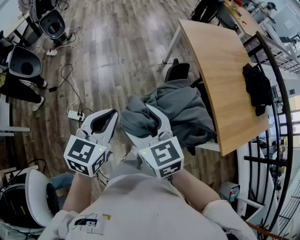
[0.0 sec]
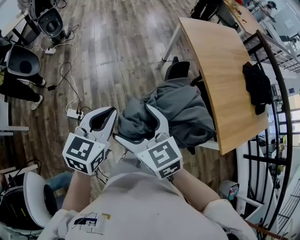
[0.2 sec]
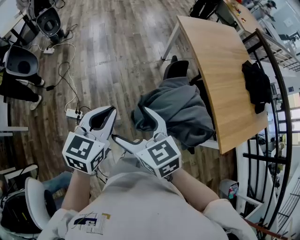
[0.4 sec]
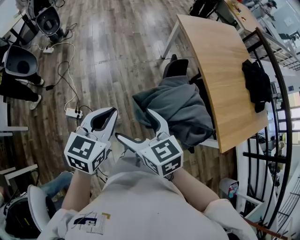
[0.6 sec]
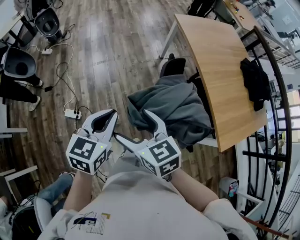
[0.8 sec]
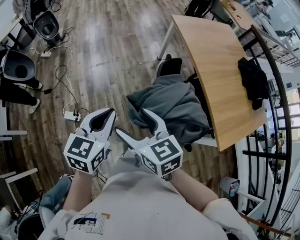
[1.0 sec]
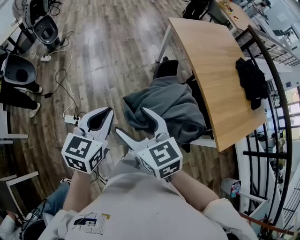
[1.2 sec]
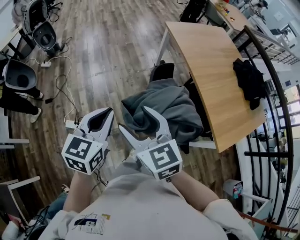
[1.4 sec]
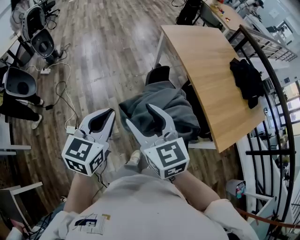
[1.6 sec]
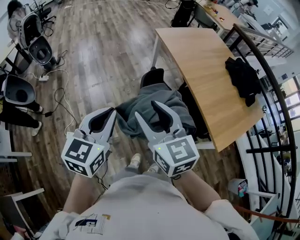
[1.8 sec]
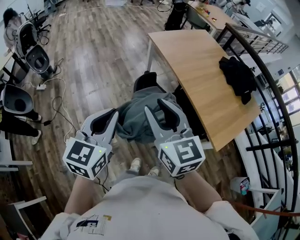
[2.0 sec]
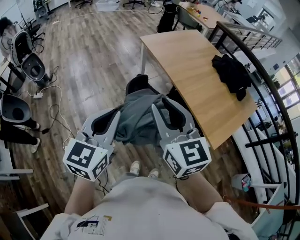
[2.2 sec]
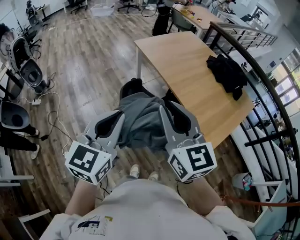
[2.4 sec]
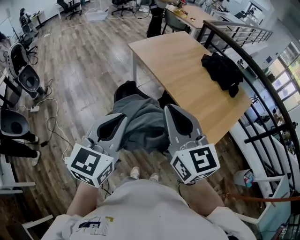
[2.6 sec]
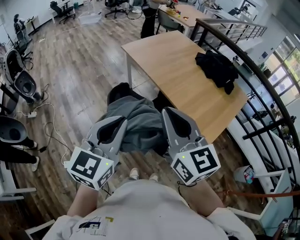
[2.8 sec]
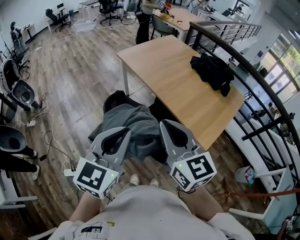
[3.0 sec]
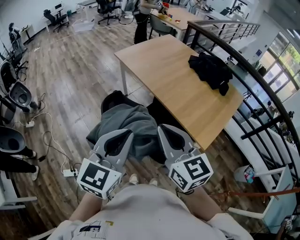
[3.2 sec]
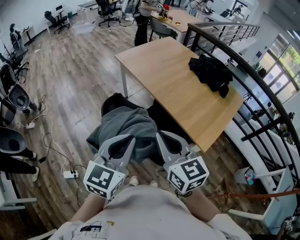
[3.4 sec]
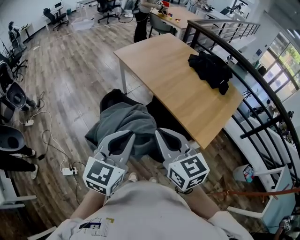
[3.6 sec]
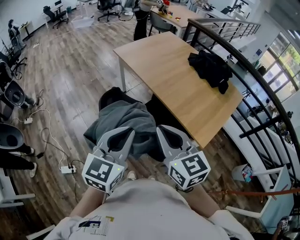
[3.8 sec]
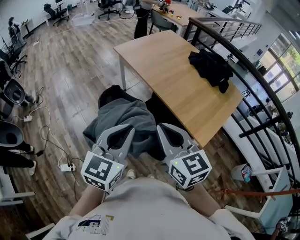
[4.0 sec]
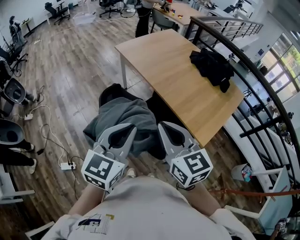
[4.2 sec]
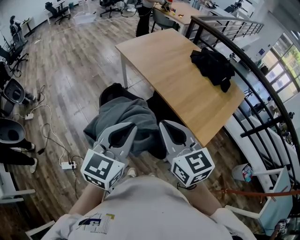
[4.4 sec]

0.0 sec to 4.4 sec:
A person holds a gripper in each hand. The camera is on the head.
0.0 sec to 1.4 sec: The right gripper opens, then closes again.
1.4 sec to 3.0 sec: The left gripper ends up some 25 cm from where it was, and swivels some 30 degrees. The right gripper moves about 30 cm, rotates roughly 30 degrees, and closes up.
3.0 sec to 4.4 sec: The right gripper changes place by some 5 cm. The left gripper ends up roughly 5 cm from where it was.

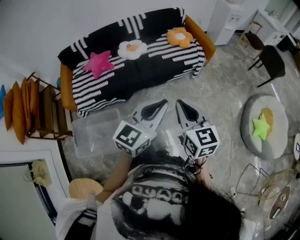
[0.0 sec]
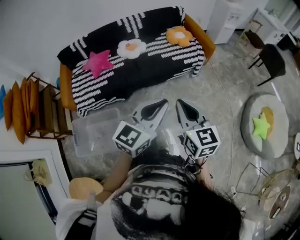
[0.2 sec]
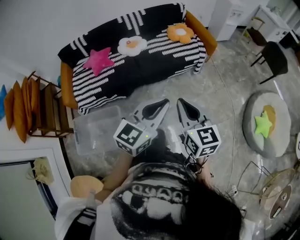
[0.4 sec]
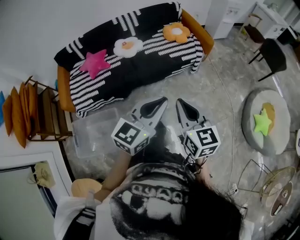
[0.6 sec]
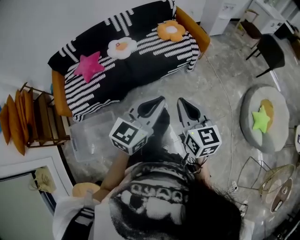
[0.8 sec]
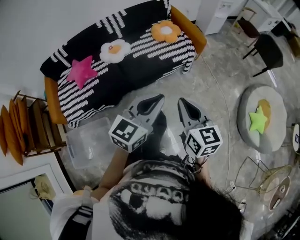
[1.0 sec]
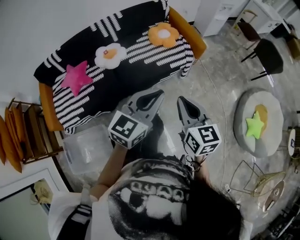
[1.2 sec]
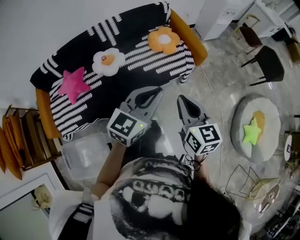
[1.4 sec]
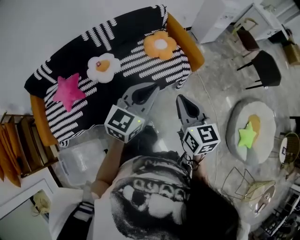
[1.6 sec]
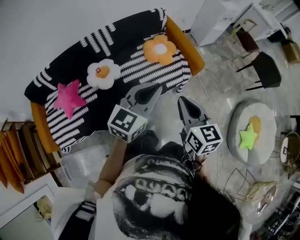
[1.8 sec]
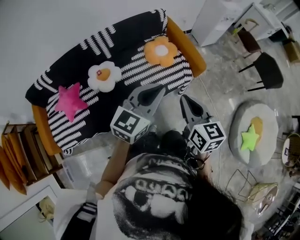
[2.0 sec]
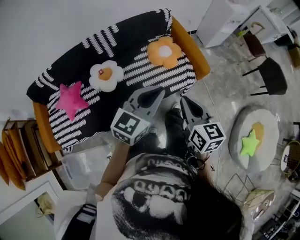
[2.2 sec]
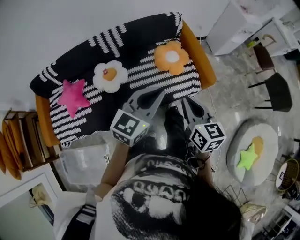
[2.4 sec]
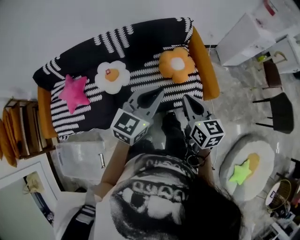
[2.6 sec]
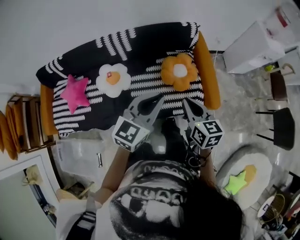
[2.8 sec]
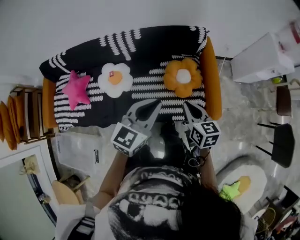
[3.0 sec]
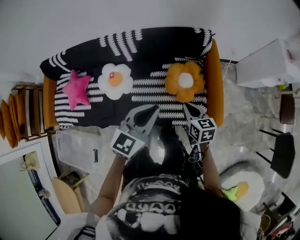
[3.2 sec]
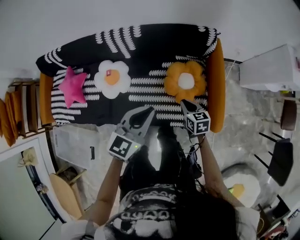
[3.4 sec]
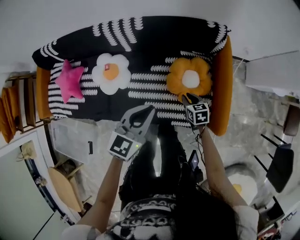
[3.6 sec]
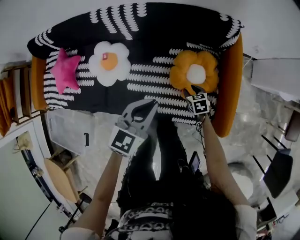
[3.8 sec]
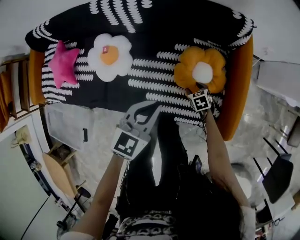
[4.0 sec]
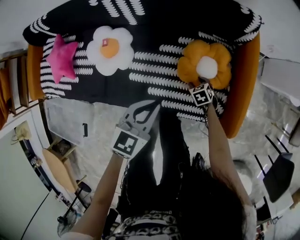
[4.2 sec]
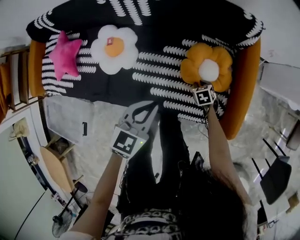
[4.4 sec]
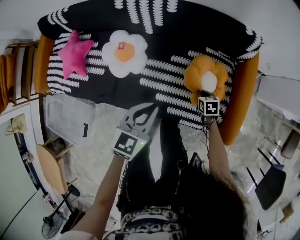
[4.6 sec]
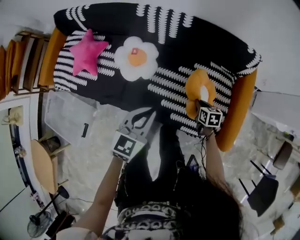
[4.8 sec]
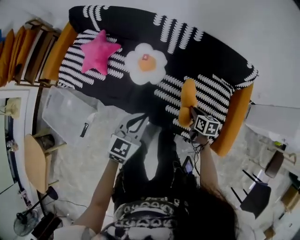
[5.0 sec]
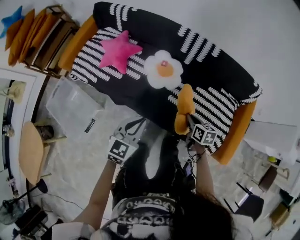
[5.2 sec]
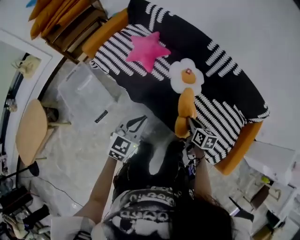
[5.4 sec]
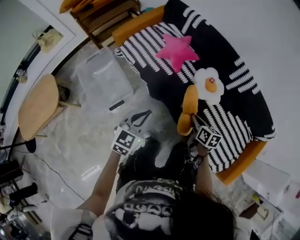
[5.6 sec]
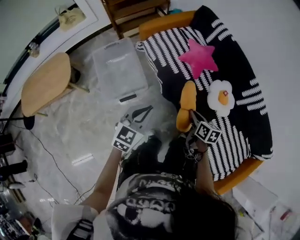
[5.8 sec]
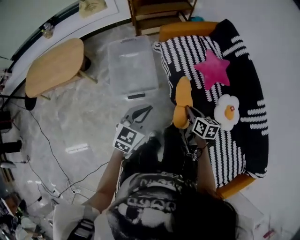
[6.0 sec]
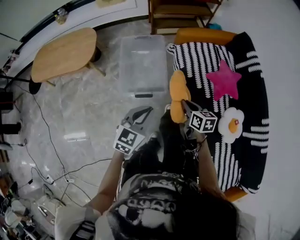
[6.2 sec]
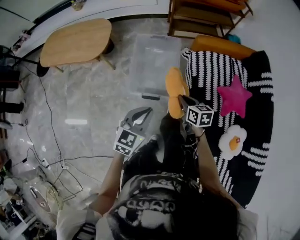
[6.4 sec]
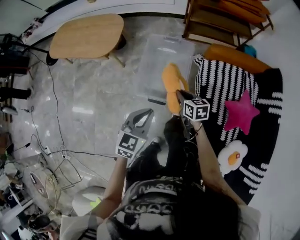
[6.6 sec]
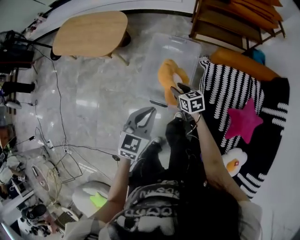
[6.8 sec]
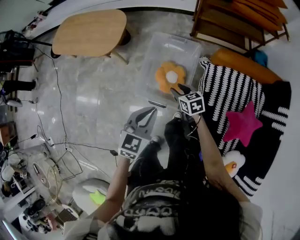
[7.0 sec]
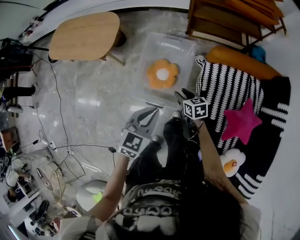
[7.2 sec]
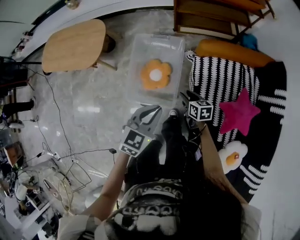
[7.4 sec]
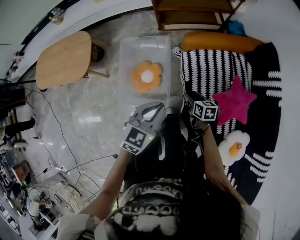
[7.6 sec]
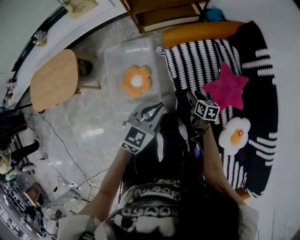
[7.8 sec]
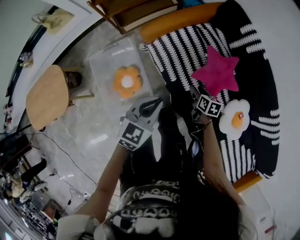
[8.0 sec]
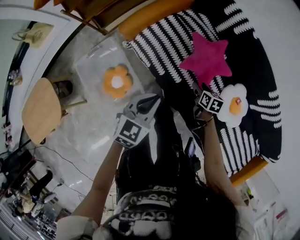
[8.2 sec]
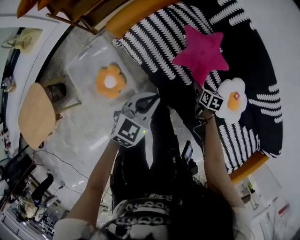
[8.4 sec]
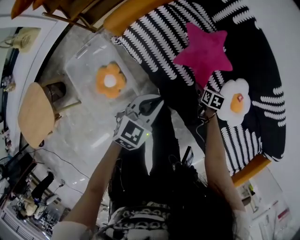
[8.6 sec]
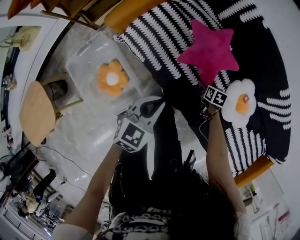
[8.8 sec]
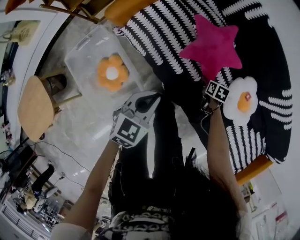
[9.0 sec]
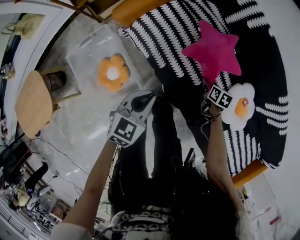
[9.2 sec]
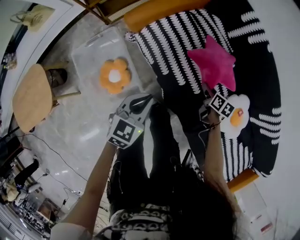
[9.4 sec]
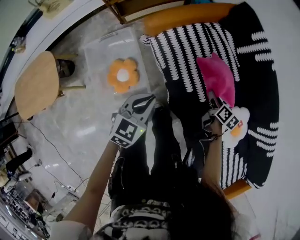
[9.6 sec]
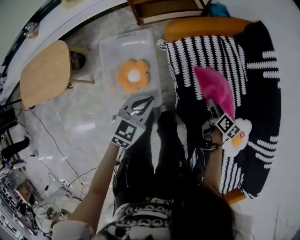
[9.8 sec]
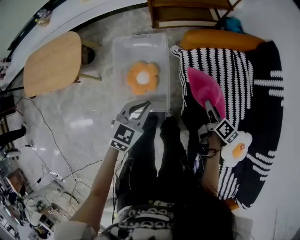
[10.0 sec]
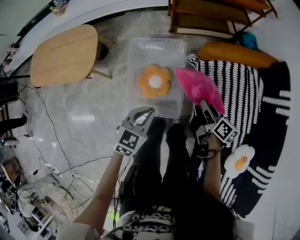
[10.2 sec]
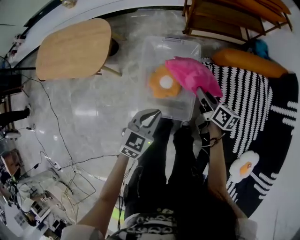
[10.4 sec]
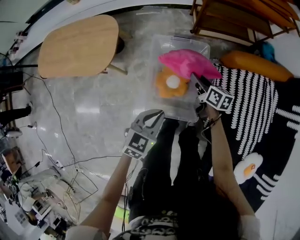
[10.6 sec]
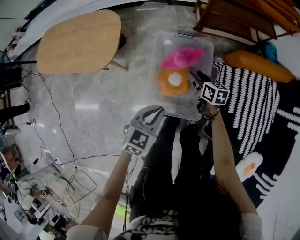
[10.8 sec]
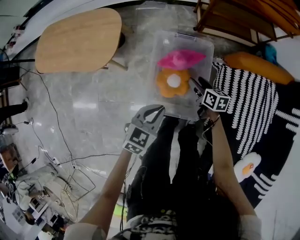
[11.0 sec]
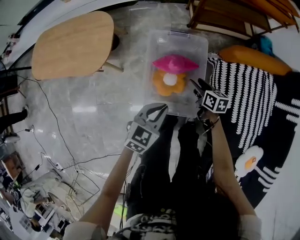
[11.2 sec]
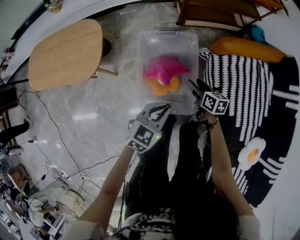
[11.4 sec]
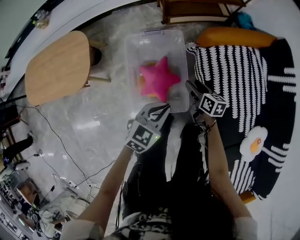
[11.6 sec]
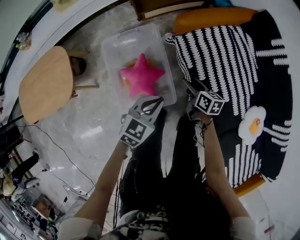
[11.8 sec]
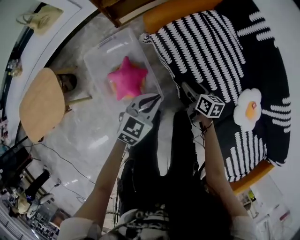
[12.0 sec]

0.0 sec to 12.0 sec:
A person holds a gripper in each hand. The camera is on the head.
0.0 sec to 1.6 sec: The two grippers travel together, forward, some 40 cm.
1.6 sec to 3.0 sec: The right gripper moves about 40 cm, and swivels approximately 30 degrees, while the left gripper changes place by roughly 30 cm, and rotates roughly 30 degrees.
3.0 sec to 4.4 sec: The left gripper travels downward by about 25 cm, and rotates approximately 20 degrees; the right gripper shifts some 50 cm downward, angles its fingers downward, by roughly 40 degrees, and opens, then closes once more.
4.4 sec to 6.0 sec: Both grippers are carried some 80 cm. The right gripper points its fingers some 40 degrees further upward; the left gripper changes its angle by about 60 degrees.
6.0 sec to 7.6 sec: The right gripper shifts by approximately 40 cm, swivels some 20 degrees, and opens up, while the left gripper changes place by approximately 30 cm.
7.6 sec to 9.0 sec: The right gripper changes place by approximately 40 cm, and turns by approximately 50 degrees, while the left gripper changes place by about 25 cm, and turns by some 40 degrees.
9.0 sec to 10.4 sec: The right gripper changes place by about 60 cm, and tilts its fingers approximately 40 degrees upward, while the left gripper changes place by some 40 cm, and turns by roughly 40 degrees.
10.4 sec to 12.0 sec: The right gripper changes place by some 30 cm, rotates some 30 degrees, and opens up. Meanwhile the left gripper shifts by approximately 25 cm, and rotates approximately 40 degrees.

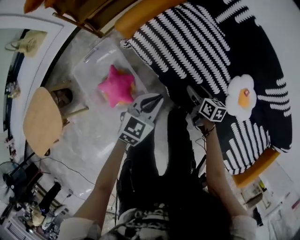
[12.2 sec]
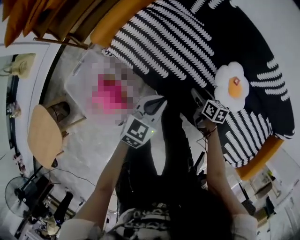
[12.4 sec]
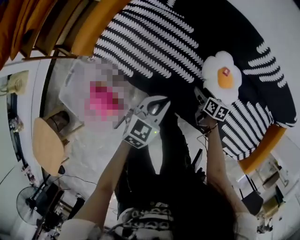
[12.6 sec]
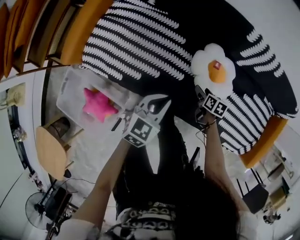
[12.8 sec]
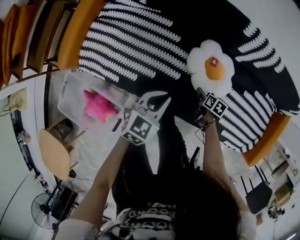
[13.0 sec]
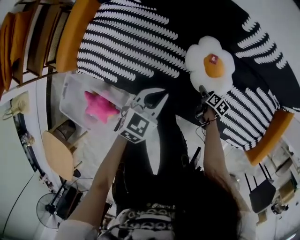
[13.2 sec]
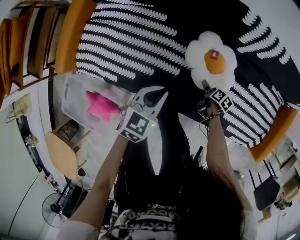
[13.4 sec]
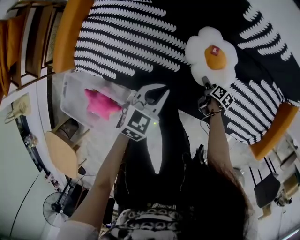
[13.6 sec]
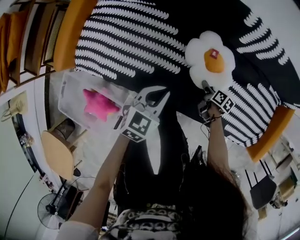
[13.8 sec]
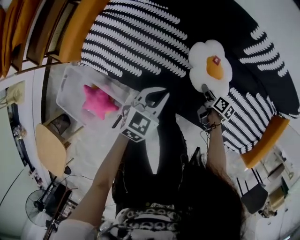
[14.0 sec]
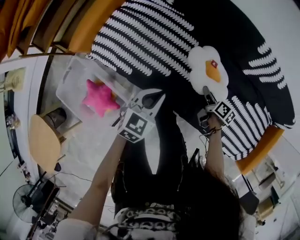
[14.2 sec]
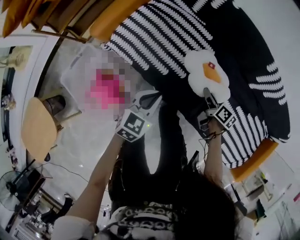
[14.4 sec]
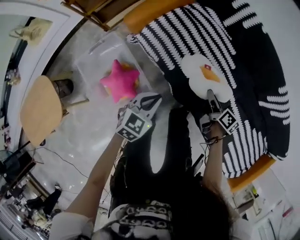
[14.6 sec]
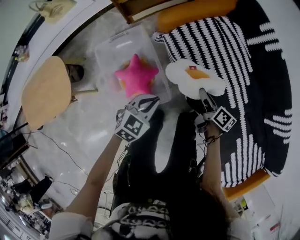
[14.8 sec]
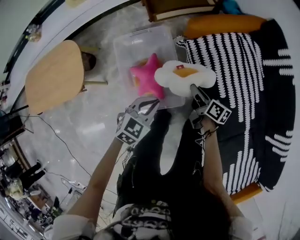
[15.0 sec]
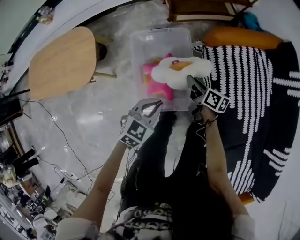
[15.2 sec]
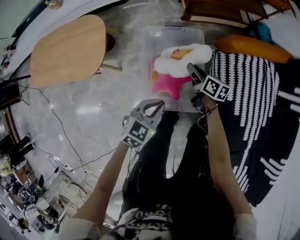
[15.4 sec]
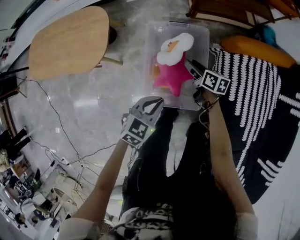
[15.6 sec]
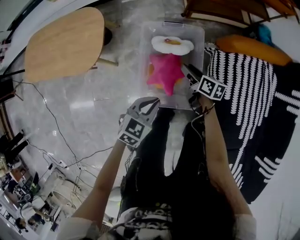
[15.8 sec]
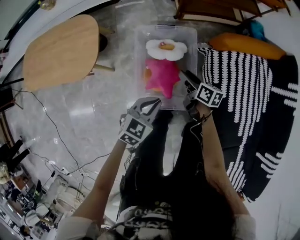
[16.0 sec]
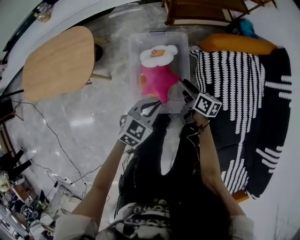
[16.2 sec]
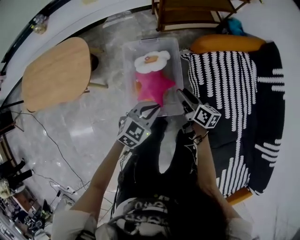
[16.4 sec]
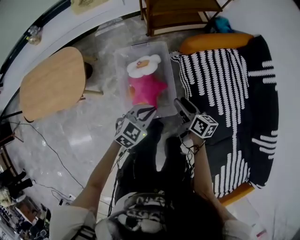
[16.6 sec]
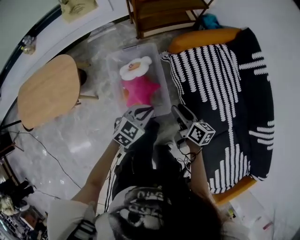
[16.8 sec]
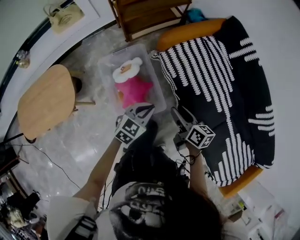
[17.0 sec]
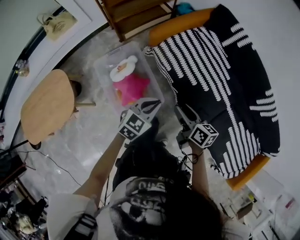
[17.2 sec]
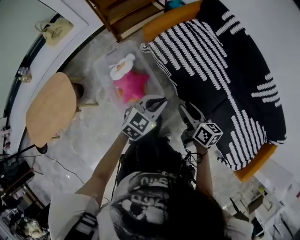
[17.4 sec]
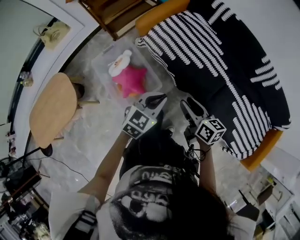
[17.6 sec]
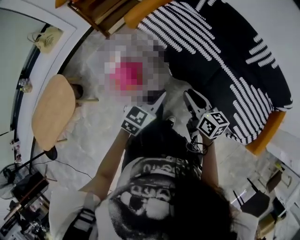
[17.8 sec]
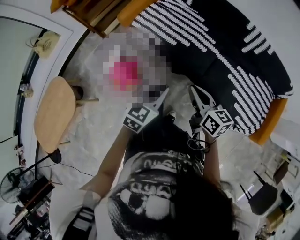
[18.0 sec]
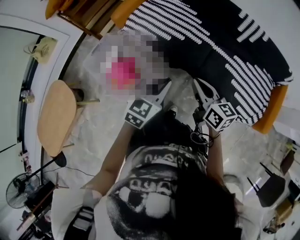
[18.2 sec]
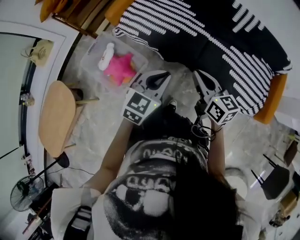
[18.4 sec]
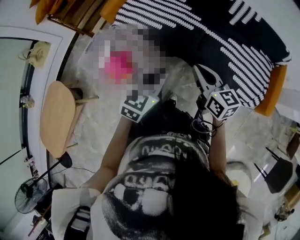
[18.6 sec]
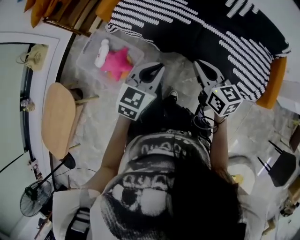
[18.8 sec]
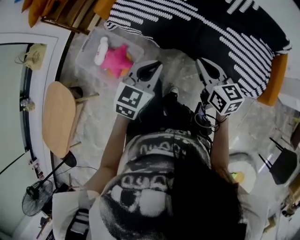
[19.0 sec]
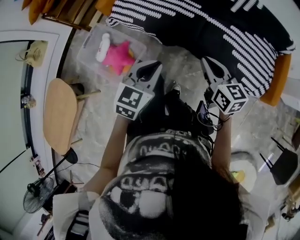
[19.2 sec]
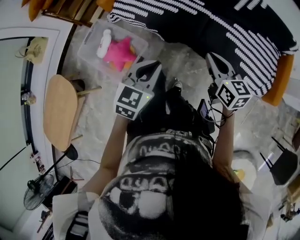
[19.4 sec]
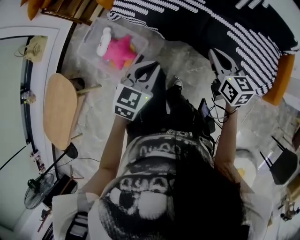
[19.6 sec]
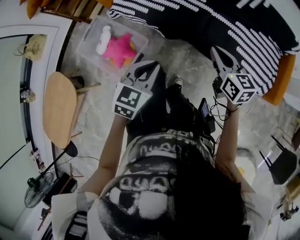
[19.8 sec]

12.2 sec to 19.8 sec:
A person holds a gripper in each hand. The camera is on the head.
12.2 sec to 13.8 sec: The right gripper shifts by about 40 cm, rolls clockwise, seen from behind, by about 40 degrees, and closes its fingers. The left gripper shifts by approximately 35 cm, and turns by some 30 degrees.
13.8 sec to 15.2 sec: The pair of grippers is taken about 70 cm. The left gripper changes its angle by some 50 degrees; the right gripper turns by roughly 70 degrees.
15.2 sec to 16.8 sec: The right gripper moves upward and backward, about 20 cm, and opens. The left gripper is displaced upward by some 5 cm.
16.8 sec to 18.2 sec: The right gripper changes place by about 40 cm, rotates approximately 30 degrees, and closes. The left gripper ends up some 40 cm from where it was, and rotates about 30 degrees.
18.2 sec to 19.8 sec: The left gripper changes place by about 5 cm. Meanwhile the right gripper shifts approximately 10 cm to the right.
